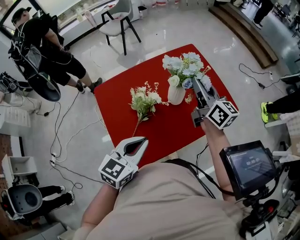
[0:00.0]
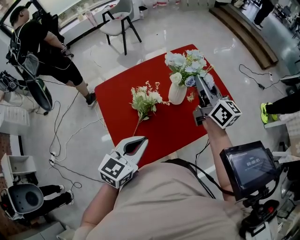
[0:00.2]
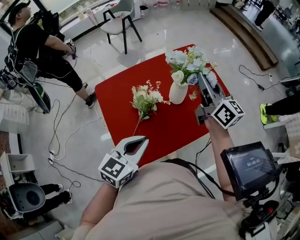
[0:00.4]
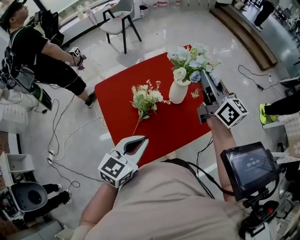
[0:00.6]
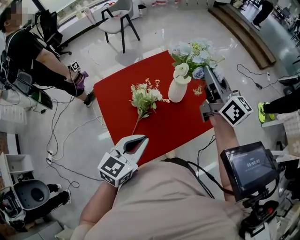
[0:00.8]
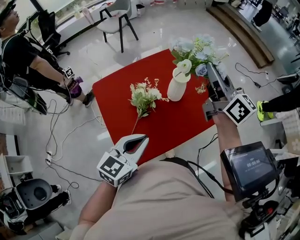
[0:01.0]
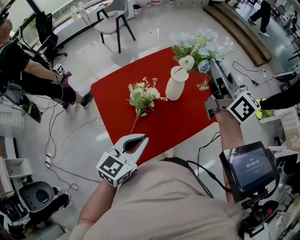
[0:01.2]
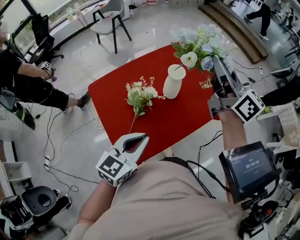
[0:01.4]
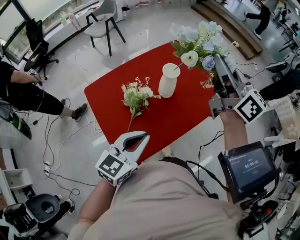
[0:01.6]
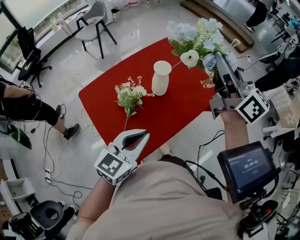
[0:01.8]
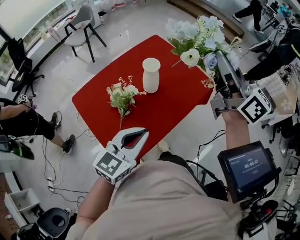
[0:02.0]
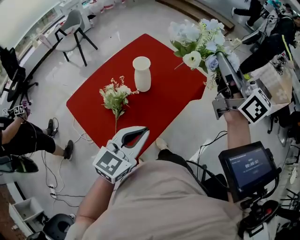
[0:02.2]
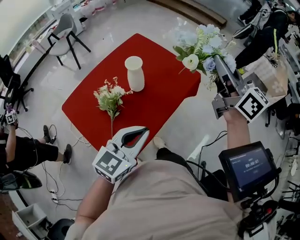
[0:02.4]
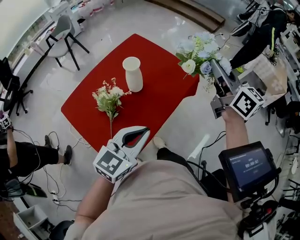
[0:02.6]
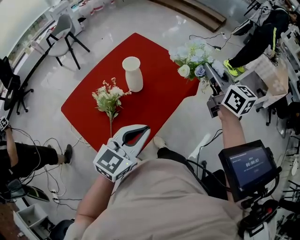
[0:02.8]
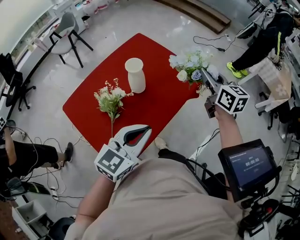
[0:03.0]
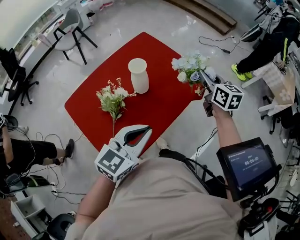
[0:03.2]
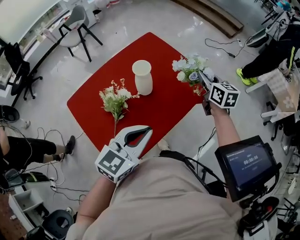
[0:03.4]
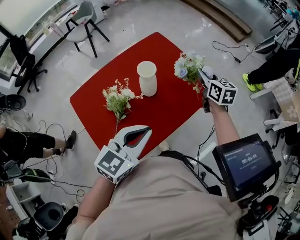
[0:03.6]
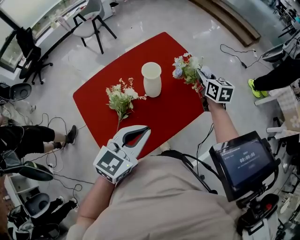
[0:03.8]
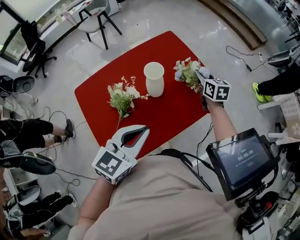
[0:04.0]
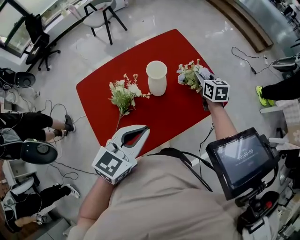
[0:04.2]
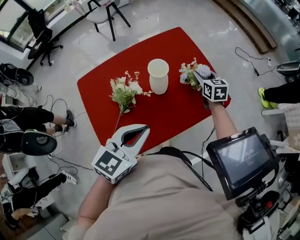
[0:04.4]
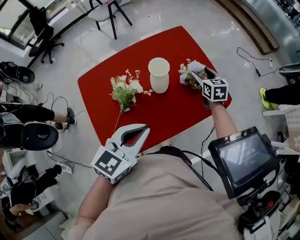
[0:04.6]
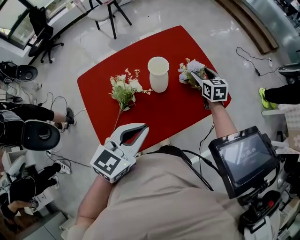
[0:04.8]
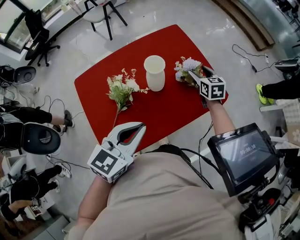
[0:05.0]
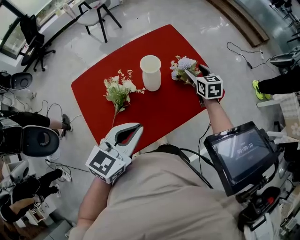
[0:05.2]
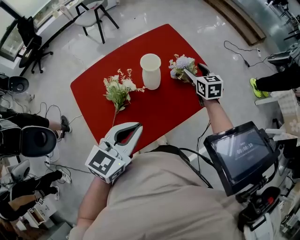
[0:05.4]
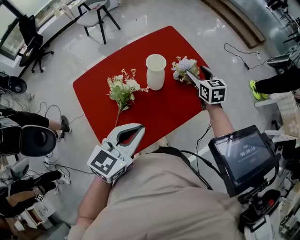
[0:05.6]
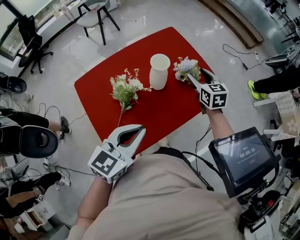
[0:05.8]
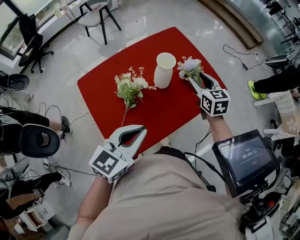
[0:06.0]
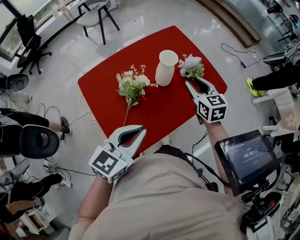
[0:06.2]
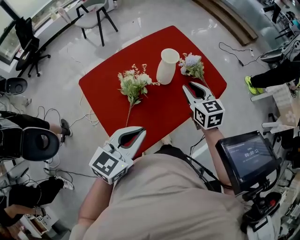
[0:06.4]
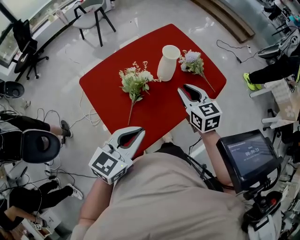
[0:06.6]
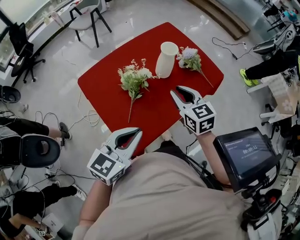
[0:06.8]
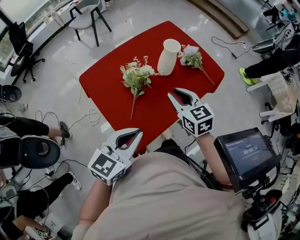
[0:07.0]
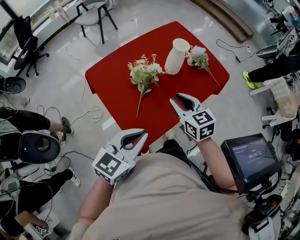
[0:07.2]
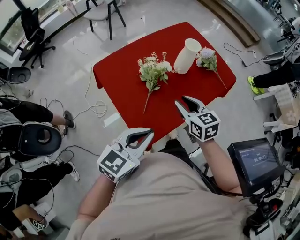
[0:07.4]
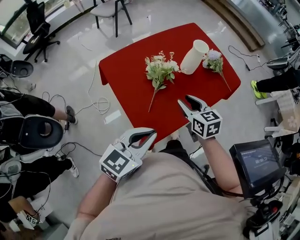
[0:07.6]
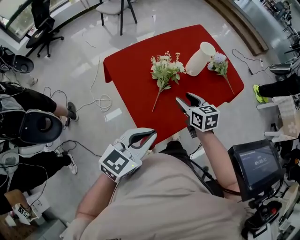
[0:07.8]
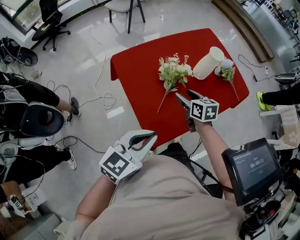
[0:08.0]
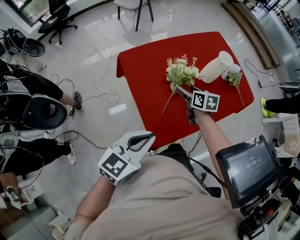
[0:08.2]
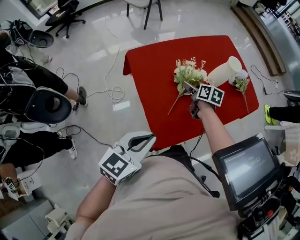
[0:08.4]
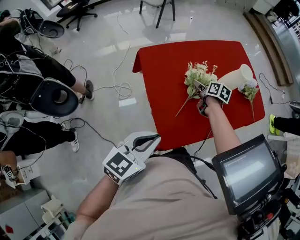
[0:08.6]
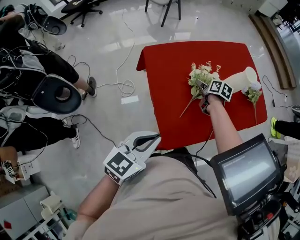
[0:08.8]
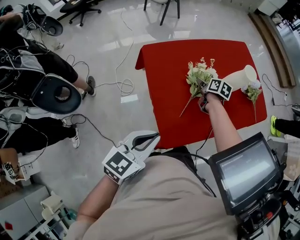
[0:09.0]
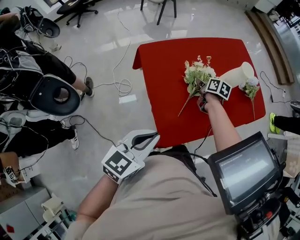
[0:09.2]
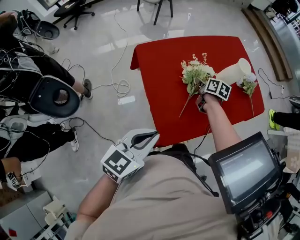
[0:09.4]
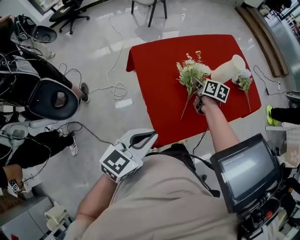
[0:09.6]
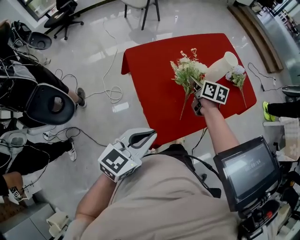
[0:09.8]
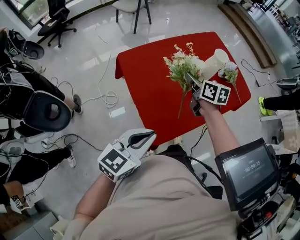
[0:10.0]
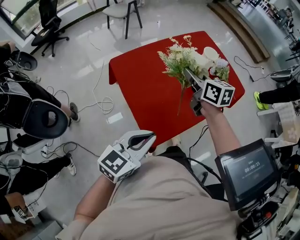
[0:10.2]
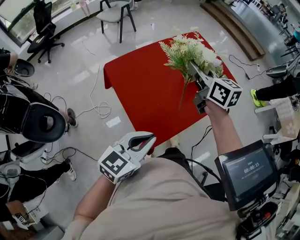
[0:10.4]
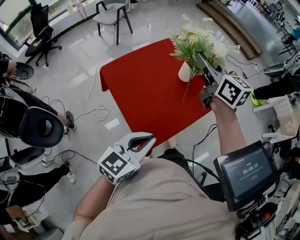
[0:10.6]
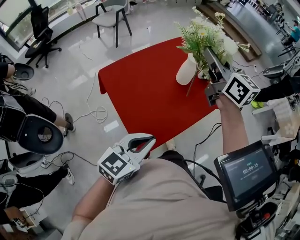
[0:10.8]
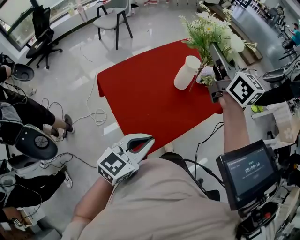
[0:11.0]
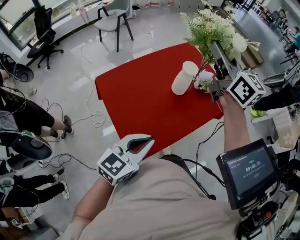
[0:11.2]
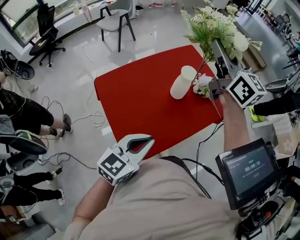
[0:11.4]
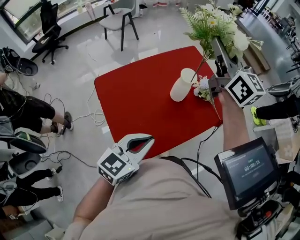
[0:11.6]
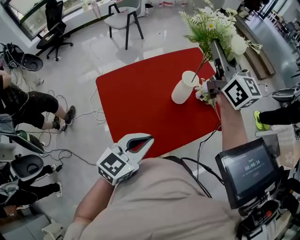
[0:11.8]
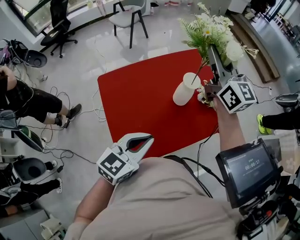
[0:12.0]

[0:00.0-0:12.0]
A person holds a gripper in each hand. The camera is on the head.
0:00.0 to 0:01.6: The right gripper goes roughly 15 cm upward.
0:01.6 to 0:03.0: The left gripper moves to the right, some 10 cm. Meanwhile the right gripper shifts about 25 cm downward and to the right, and turns by roughly 40 degrees.
0:03.0 to 0:04.4: The left gripper shifts some 5 cm forward, and changes its angle by approximately 20 degrees. The right gripper goes roughly 30 cm downward, forward and to the left, and swivels some 30 degrees.
0:04.4 to 0:06.0: The right gripper moves backward and upward, about 15 cm. The left gripper goes about 10 cm backward and to the left.
0:06.0 to 0:07.6: The left gripper shifts about 15 cm backward and to the left, while the right gripper shifts approximately 30 cm backward and to the left.
0:07.6 to 0:09.0: The left gripper moves to the left, some 10 cm, and rotates some 20 degrees, while the right gripper shifts approximately 25 cm forward, downward and to the left, rotates some 30 degrees, and opens, then closes again.
0:09.0 to 0:10.4: The left gripper travels to the right by approximately 10 cm. The right gripper shifts roughly 30 cm upward, and points its fingers about 30 degrees further upward.
0:10.4 to 0:12.0: The right gripper moves forward, upward and to the right, about 25 cm, and swivels about 30 degrees, while the left gripper moves forward and to the right, roughly 15 cm.

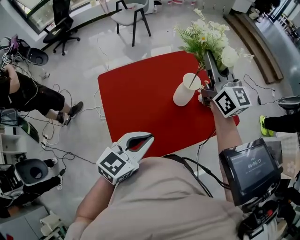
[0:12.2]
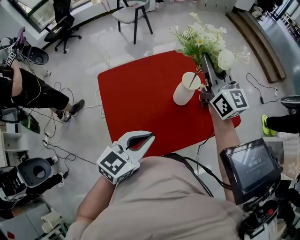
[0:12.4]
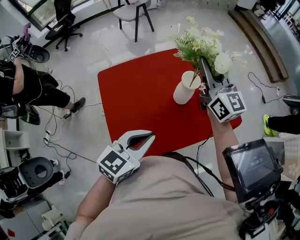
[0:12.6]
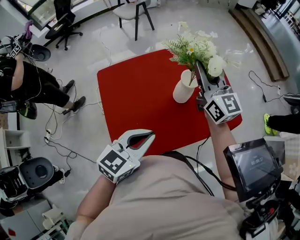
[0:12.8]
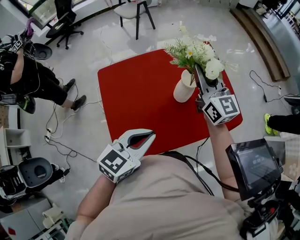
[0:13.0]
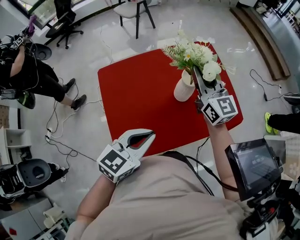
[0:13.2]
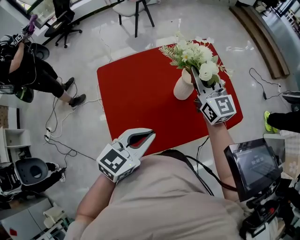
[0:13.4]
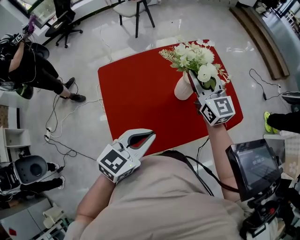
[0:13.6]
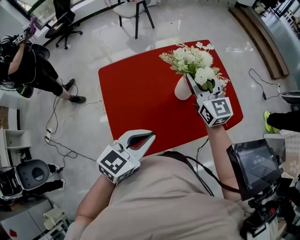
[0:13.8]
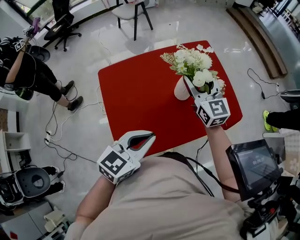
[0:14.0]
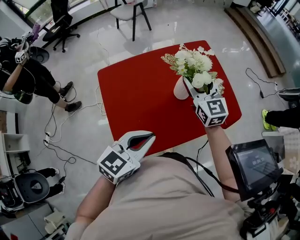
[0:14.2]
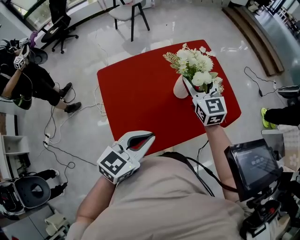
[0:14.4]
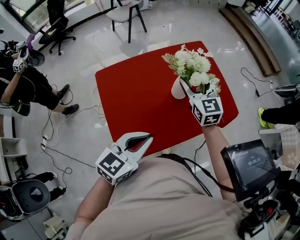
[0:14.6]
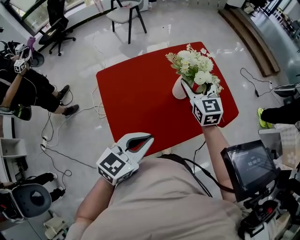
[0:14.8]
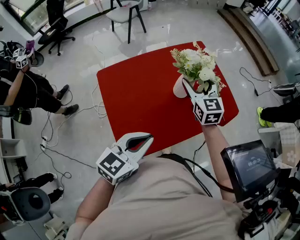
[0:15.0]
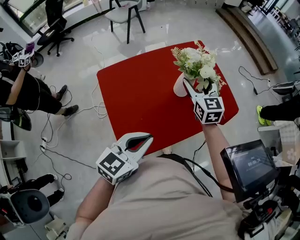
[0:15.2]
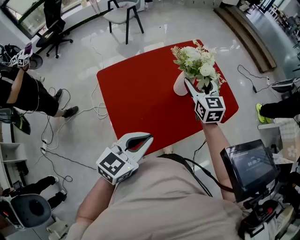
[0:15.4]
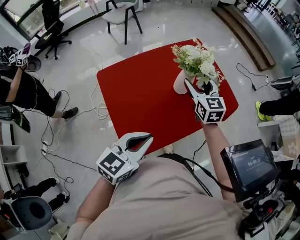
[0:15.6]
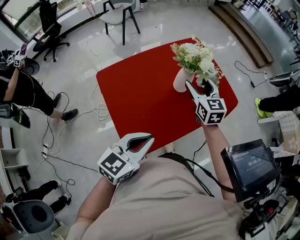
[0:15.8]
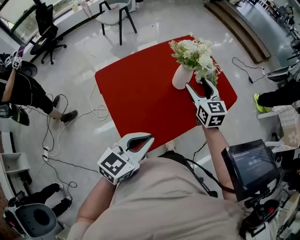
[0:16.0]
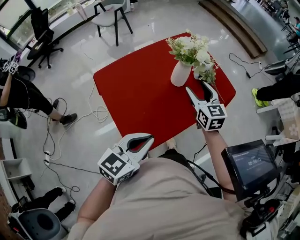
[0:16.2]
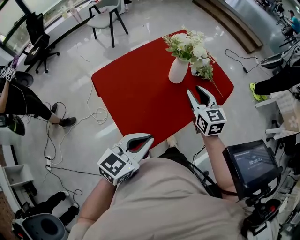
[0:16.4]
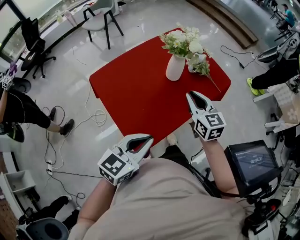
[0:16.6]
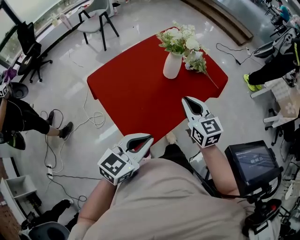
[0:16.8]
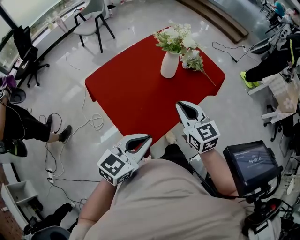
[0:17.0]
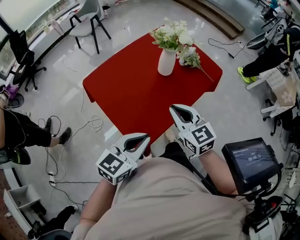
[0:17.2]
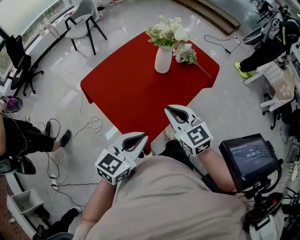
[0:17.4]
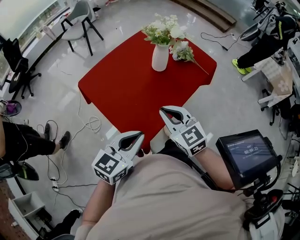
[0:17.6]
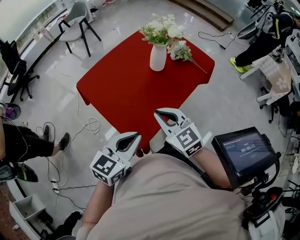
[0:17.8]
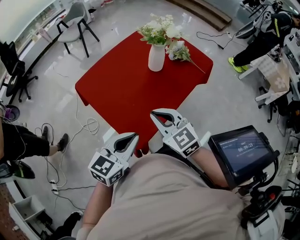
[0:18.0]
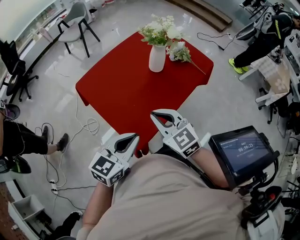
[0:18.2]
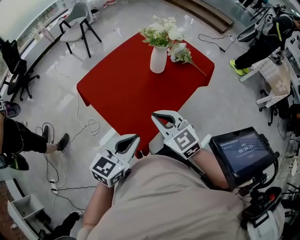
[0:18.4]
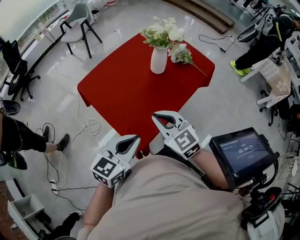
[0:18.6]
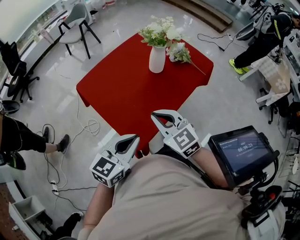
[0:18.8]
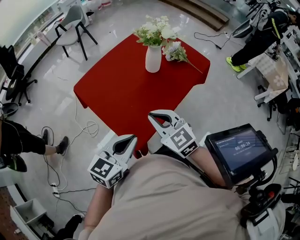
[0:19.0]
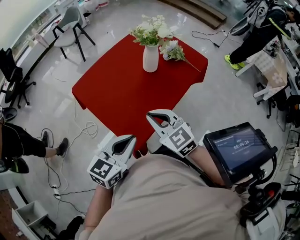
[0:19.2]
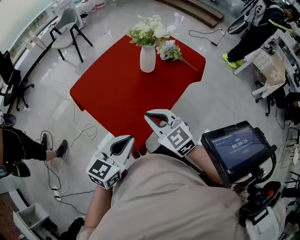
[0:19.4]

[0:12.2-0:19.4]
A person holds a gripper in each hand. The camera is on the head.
0:12.2 to 0:13.6: The right gripper heads downward, covering roughly 10 cm.
0:13.6 to 0:15.0: The right gripper changes place by approximately 5 cm. Meanwhile the left gripper moves backward, roughly 5 cm.
0:15.0 to 0:16.6: The right gripper shifts roughly 20 cm backward, and closes up, while the left gripper shifts some 10 cm backward.
0:16.6 to 0:18.0: The right gripper heads backward and to the left, covering about 15 cm.
0:18.0 to 0:19.4: The grippers make only small movements.

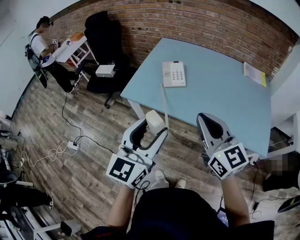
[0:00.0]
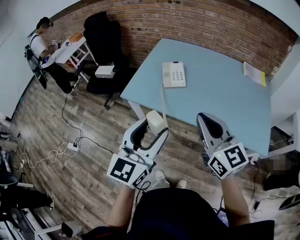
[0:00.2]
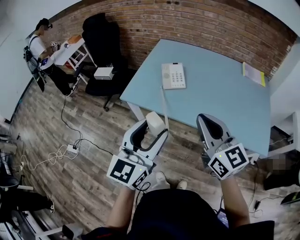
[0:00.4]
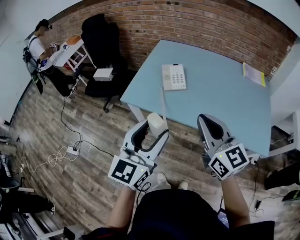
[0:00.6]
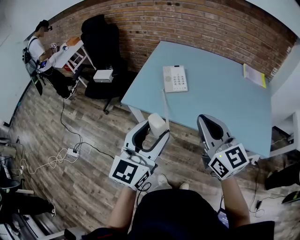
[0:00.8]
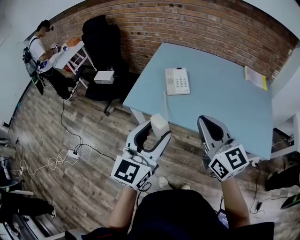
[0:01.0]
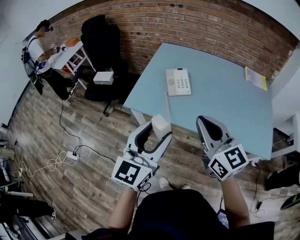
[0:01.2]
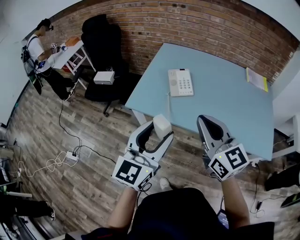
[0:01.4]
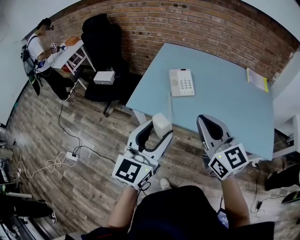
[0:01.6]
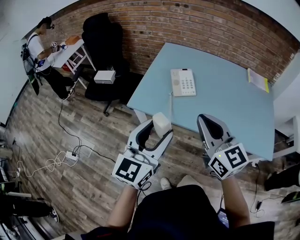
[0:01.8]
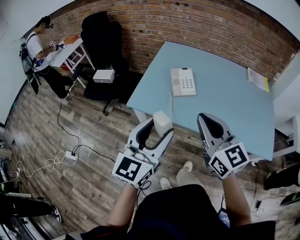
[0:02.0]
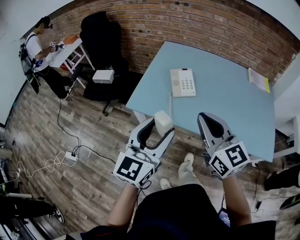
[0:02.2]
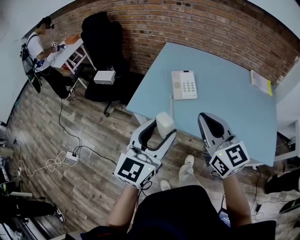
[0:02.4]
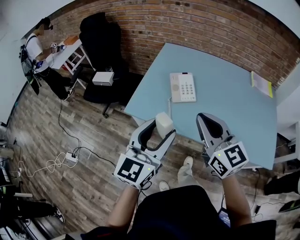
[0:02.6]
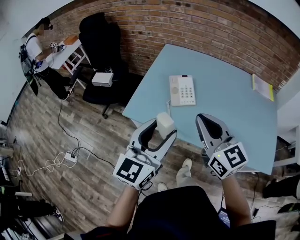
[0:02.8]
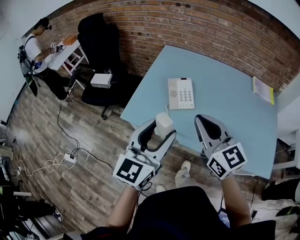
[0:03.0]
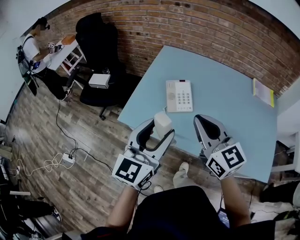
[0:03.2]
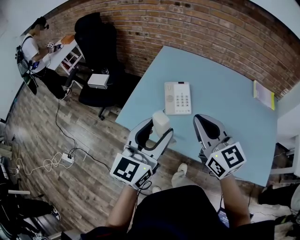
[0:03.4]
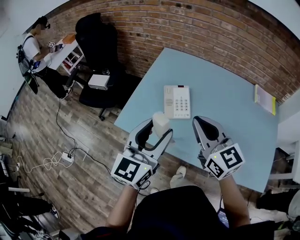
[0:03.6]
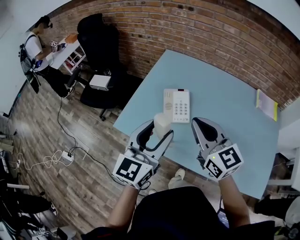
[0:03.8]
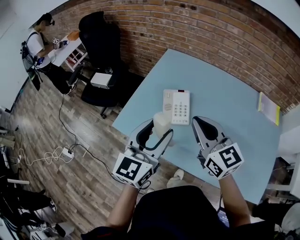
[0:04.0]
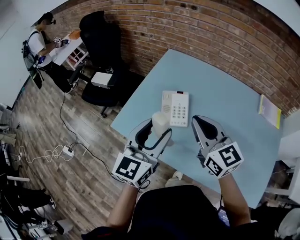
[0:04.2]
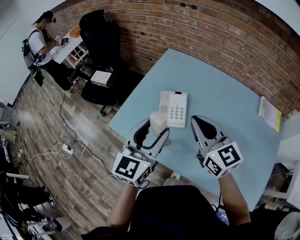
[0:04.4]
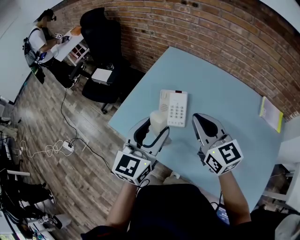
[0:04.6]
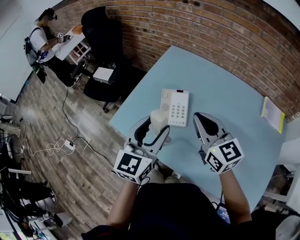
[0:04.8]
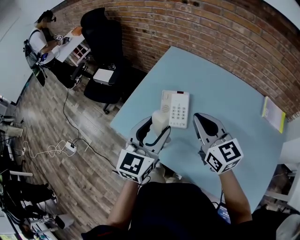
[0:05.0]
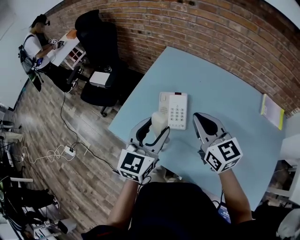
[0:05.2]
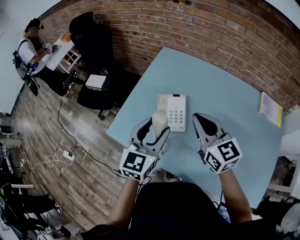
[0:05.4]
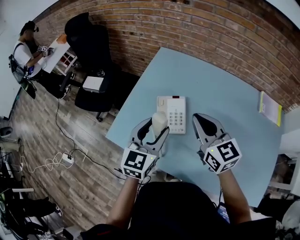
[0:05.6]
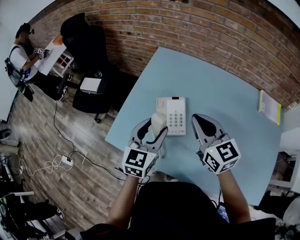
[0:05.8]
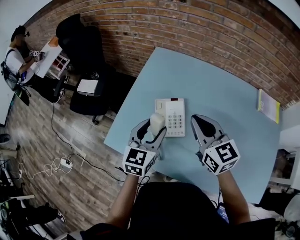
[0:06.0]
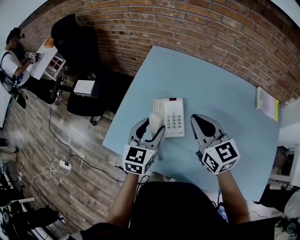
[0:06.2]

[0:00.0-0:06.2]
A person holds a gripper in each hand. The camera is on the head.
0:00.0 to 0:01.6: The grippers both shift to the left and forward by some 10 cm.
0:01.6 to 0:03.2: The two grippers go approximately 15 cm forward.
0:03.2 to 0:04.6: The two grippers go some 15 cm forward and to the right.
0:04.6 to 0:06.2: The left gripper moves forward and downward, approximately 15 cm. The right gripper shifts approximately 10 cm forward.
